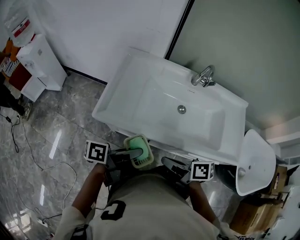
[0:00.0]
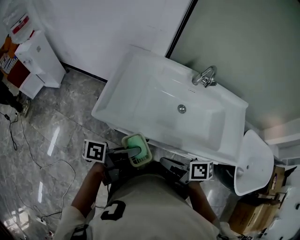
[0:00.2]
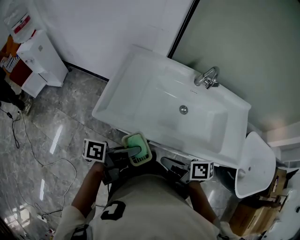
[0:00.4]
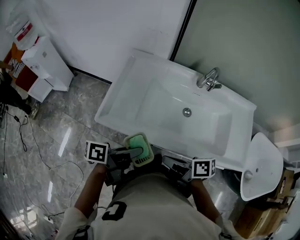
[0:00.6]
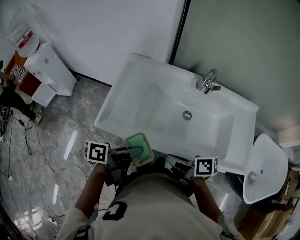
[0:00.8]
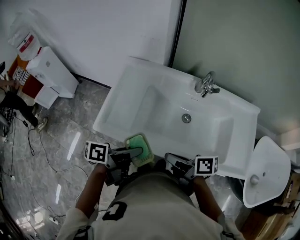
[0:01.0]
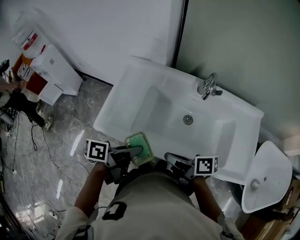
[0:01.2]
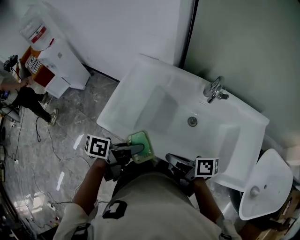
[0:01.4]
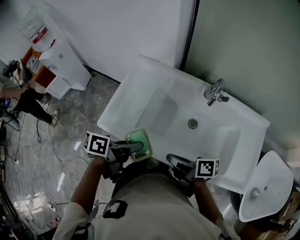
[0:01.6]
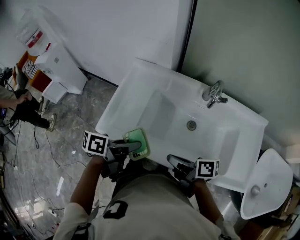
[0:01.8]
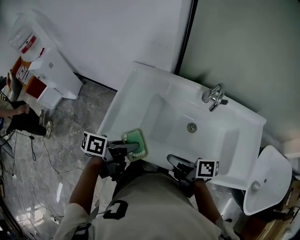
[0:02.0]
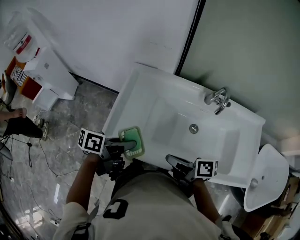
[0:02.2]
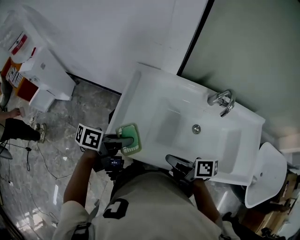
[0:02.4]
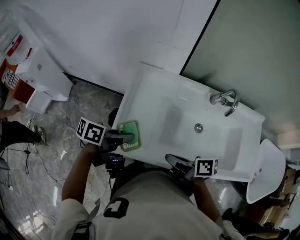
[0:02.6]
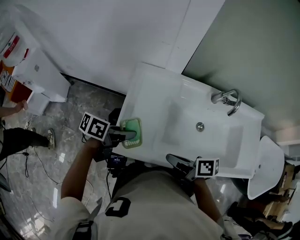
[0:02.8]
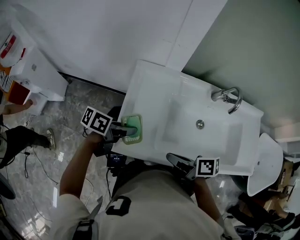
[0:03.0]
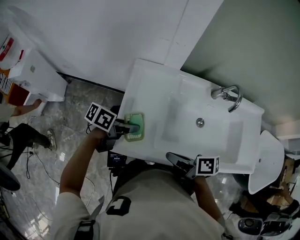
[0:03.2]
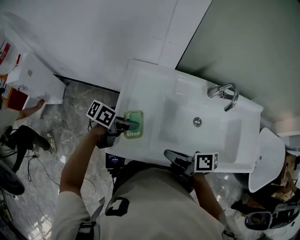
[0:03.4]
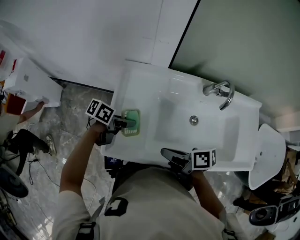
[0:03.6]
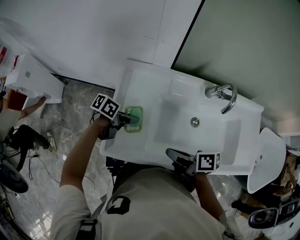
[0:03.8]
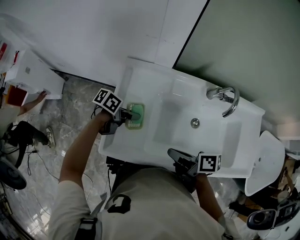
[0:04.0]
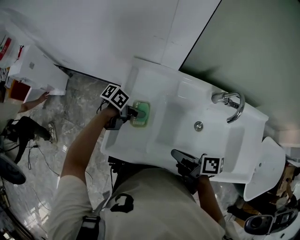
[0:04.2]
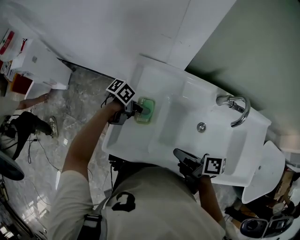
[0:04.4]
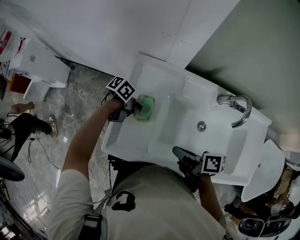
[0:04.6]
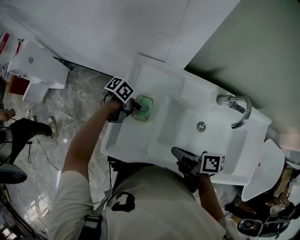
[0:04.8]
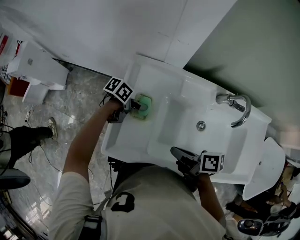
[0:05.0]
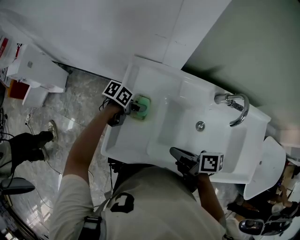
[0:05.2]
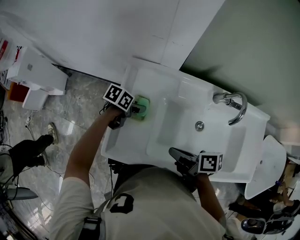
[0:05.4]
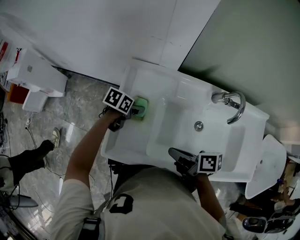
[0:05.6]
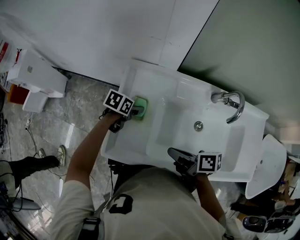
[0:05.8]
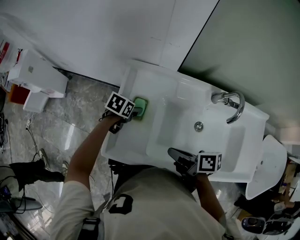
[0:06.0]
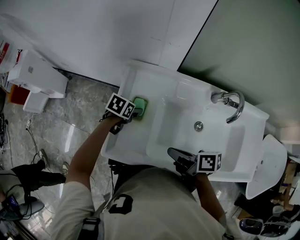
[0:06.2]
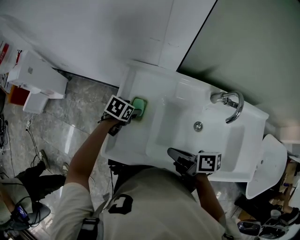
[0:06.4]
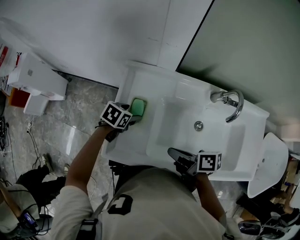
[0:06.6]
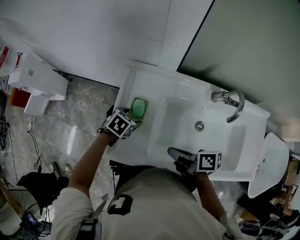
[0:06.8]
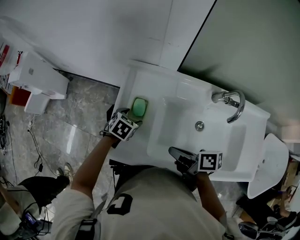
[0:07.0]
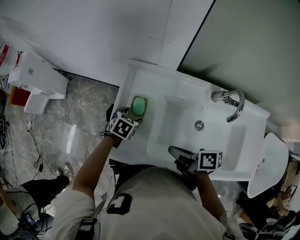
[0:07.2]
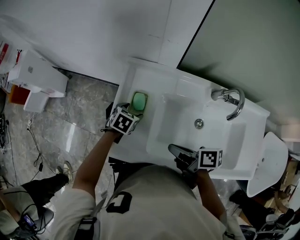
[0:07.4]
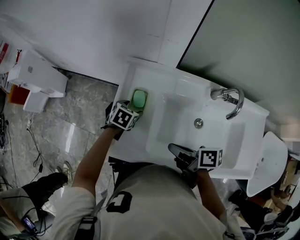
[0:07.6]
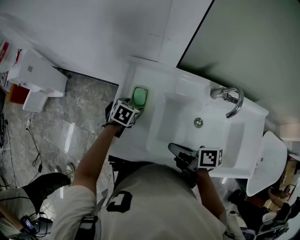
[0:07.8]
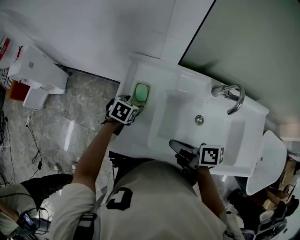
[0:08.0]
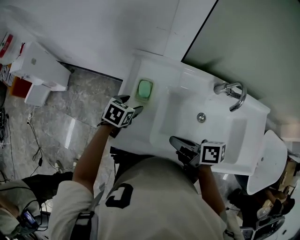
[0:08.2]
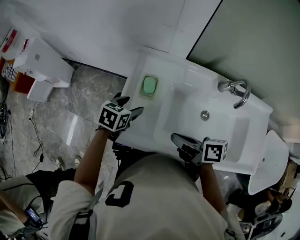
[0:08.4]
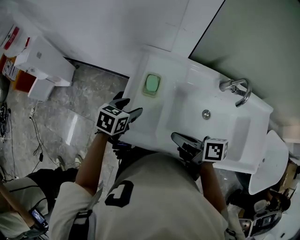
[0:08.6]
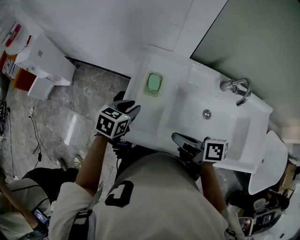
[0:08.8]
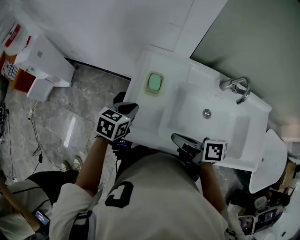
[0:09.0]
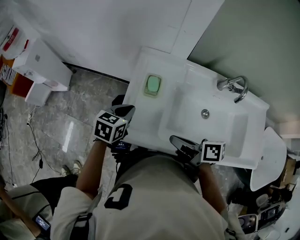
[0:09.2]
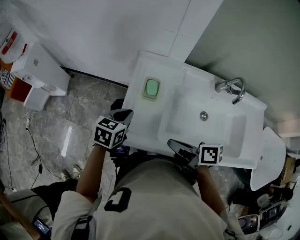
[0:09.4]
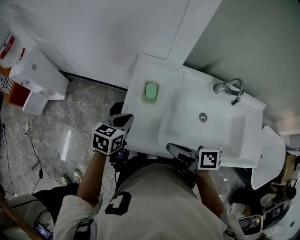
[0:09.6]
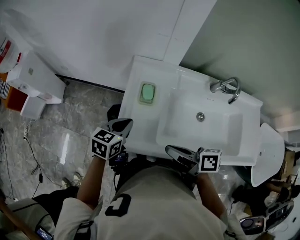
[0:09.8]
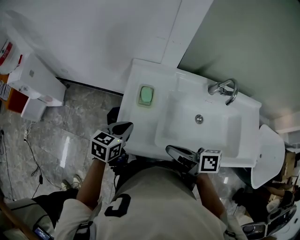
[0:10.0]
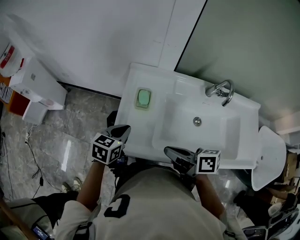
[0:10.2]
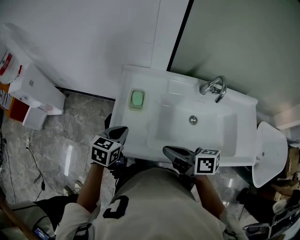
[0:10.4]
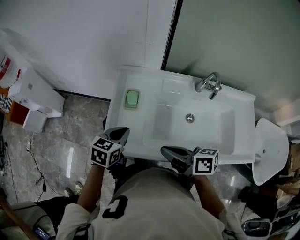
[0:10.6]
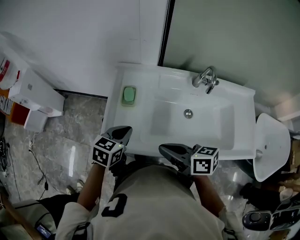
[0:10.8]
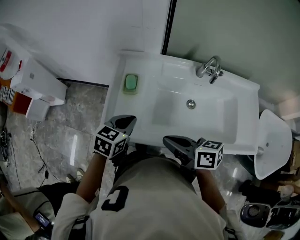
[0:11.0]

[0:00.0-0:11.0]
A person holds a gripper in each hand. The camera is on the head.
0:00.0 to 0:01.6: The left gripper ends up approximately 10 cm from where it was.
0:01.6 to 0:03.2: The left gripper changes place by roughly 25 cm, and swivels some 30 degrees.
0:03.2 to 0:04.8: The left gripper moves approximately 15 cm.
0:04.8 to 0:06.2: The left gripper changes its angle by some 40 degrees, and opens up.
0:07.8 to 0:09.4: The left gripper changes place by some 20 cm, and closes its fingers.
0:09.4 to 0:11.0: The left gripper changes place by roughly 15 cm.

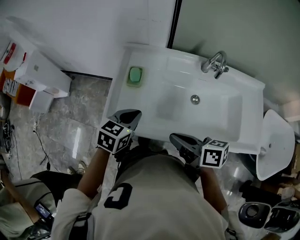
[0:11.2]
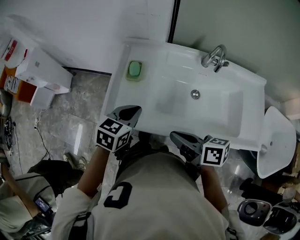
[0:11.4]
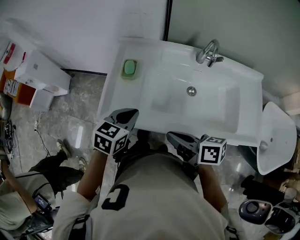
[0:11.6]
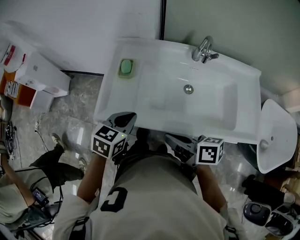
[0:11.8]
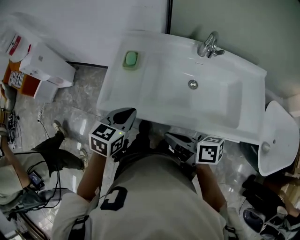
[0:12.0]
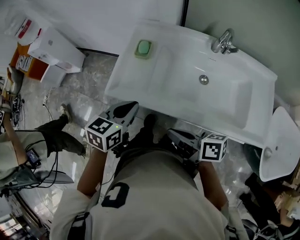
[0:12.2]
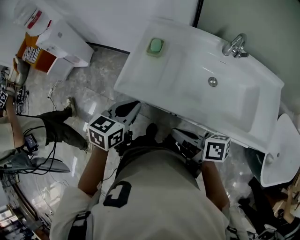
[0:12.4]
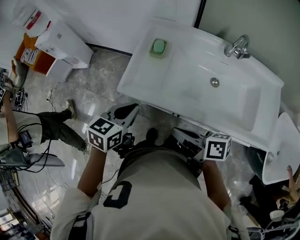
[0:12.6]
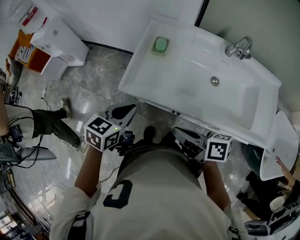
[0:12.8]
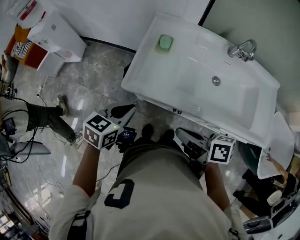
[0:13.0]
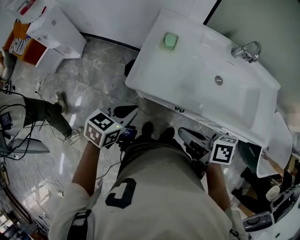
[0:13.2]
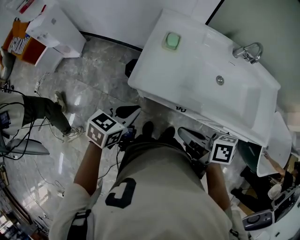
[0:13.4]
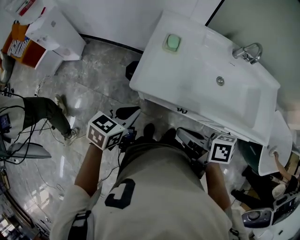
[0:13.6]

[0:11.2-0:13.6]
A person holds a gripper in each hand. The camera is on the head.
0:11.2 to 0:12.4: The left gripper shifts by some 15 cm.
0:12.4 to 0:13.6: The left gripper ends up approximately 10 cm from where it was.

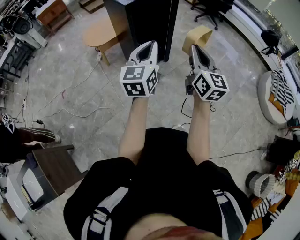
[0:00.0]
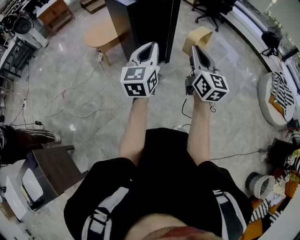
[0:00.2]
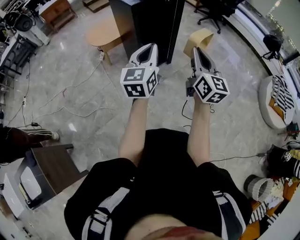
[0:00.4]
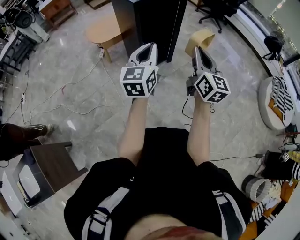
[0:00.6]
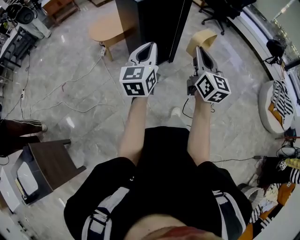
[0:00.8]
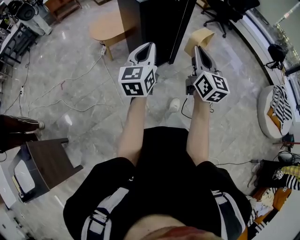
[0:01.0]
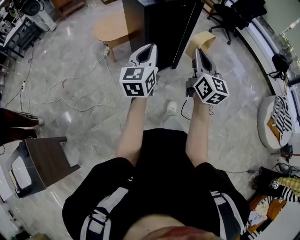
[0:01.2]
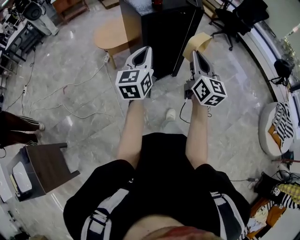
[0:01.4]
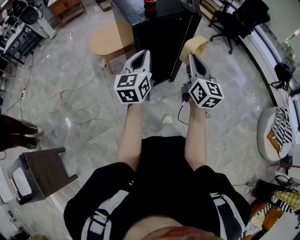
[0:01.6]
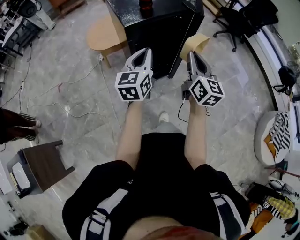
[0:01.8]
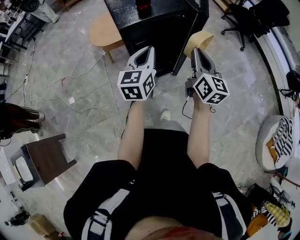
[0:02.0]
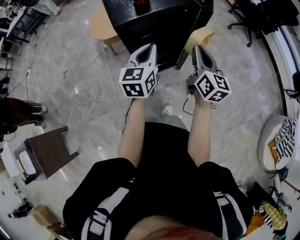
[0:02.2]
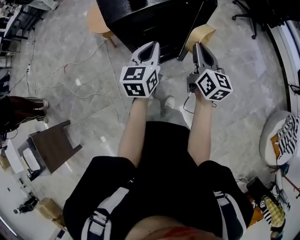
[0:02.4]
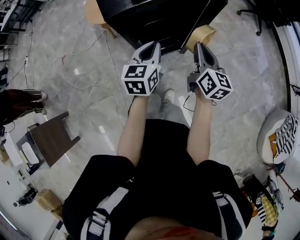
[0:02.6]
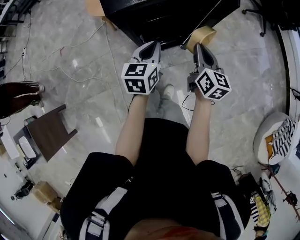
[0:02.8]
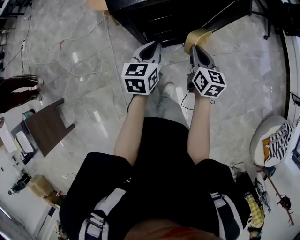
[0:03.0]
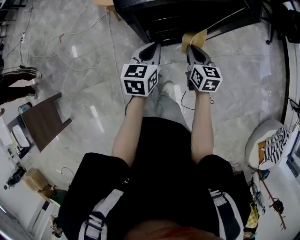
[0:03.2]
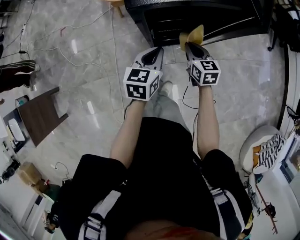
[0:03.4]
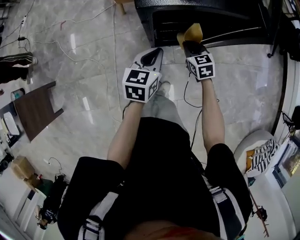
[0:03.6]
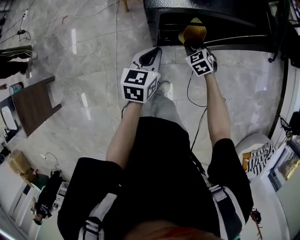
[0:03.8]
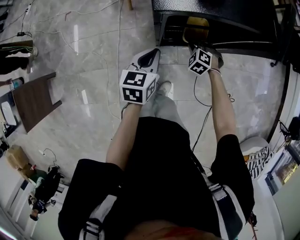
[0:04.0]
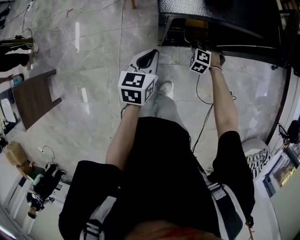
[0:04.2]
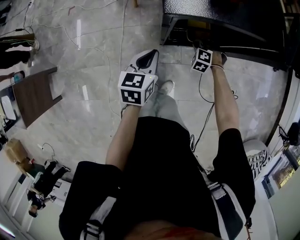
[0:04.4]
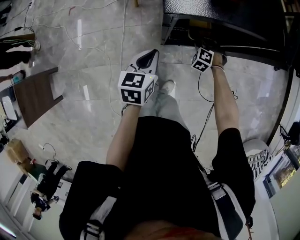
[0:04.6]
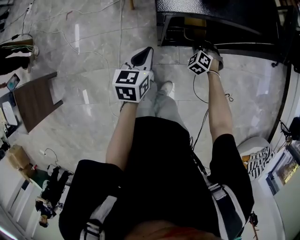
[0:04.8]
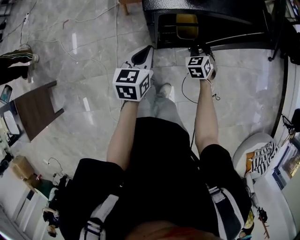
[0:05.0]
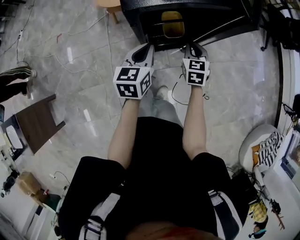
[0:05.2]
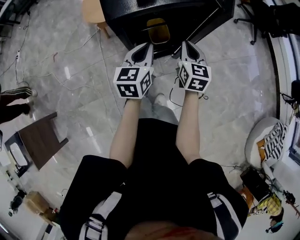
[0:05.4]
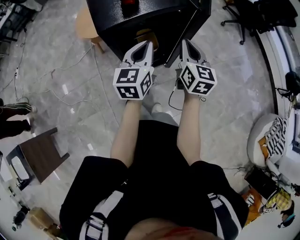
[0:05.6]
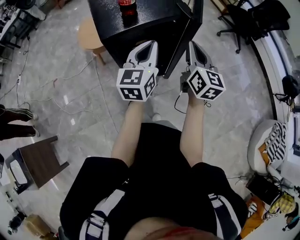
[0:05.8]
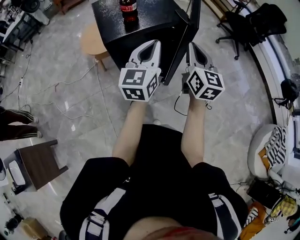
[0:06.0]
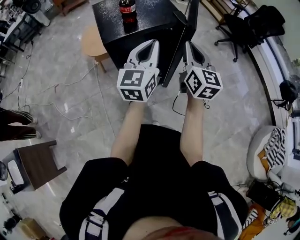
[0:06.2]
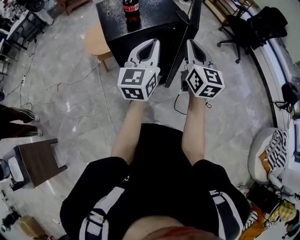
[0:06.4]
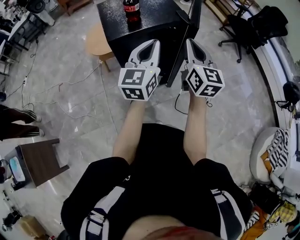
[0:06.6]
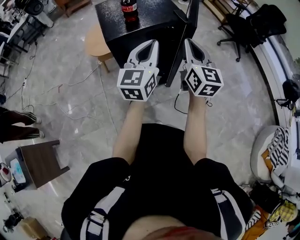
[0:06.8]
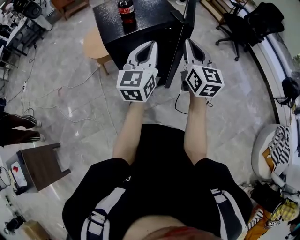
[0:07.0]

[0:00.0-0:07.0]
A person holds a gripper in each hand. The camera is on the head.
0:00.0 to 0:01.4: The right gripper heads forward, covering some 15 cm. The left gripper goes about 15 cm forward and to the left.
0:01.4 to 0:02.8: The left gripper is displaced forward, downward and to the right by about 30 cm, and changes its angle by roughly 30 degrees, while the right gripper travels forward and downward by approximately 35 cm, and swivels approximately 30 degrees.
0:02.8 to 0:04.2: The left gripper shifts about 15 cm to the left and downward. The right gripper is displaced downward and to the left by approximately 30 cm, and rotates around the line of its fingers by about 100 degrees, counterclockwise from behind.
0:04.2 to 0:05.6: The right gripper heads upward and to the right, covering about 35 cm, and rolls clockwise, seen from behind, by approximately 90 degrees; the left gripper moves upward and to the right, some 20 cm, and changes its angle by roughly 30 degrees.
0:05.6 to 0:07.0: Both grippers move upward, roughly 10 cm.

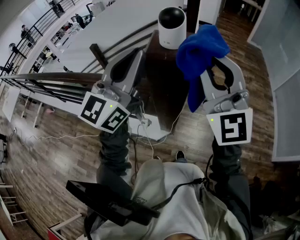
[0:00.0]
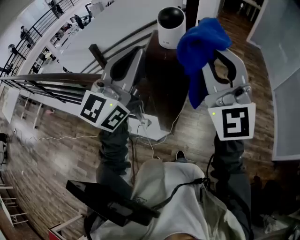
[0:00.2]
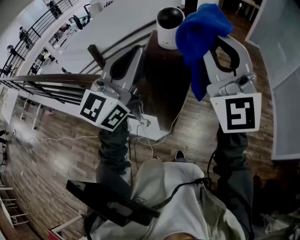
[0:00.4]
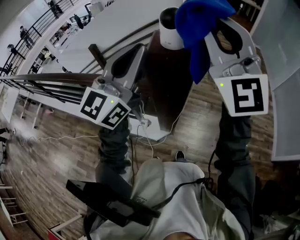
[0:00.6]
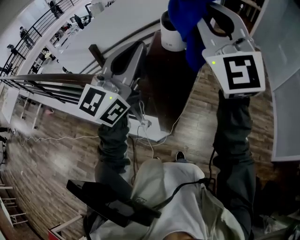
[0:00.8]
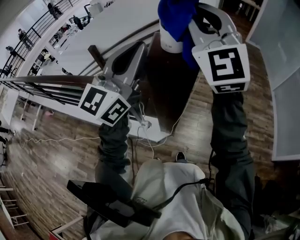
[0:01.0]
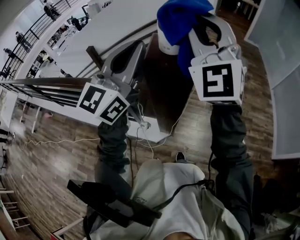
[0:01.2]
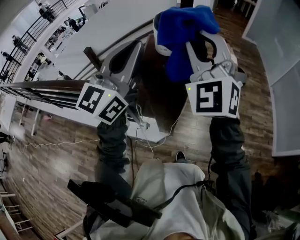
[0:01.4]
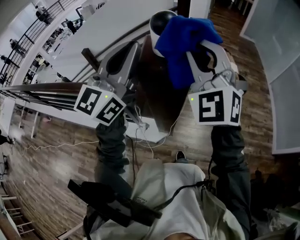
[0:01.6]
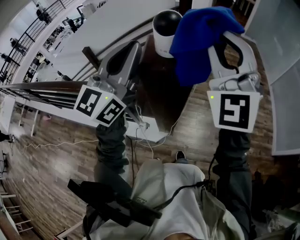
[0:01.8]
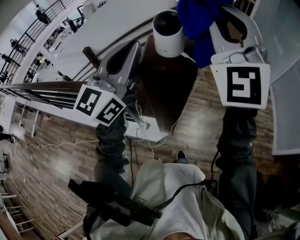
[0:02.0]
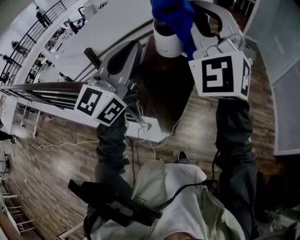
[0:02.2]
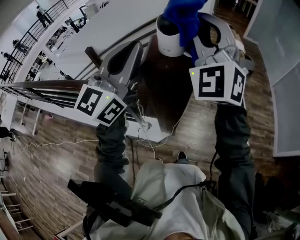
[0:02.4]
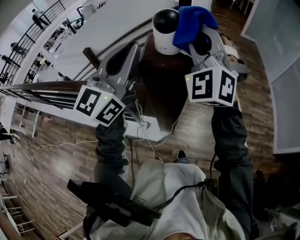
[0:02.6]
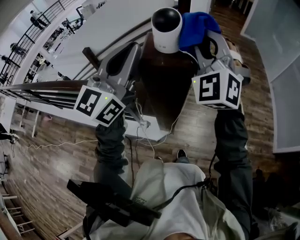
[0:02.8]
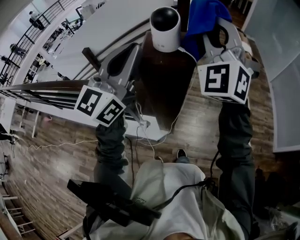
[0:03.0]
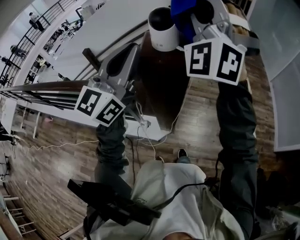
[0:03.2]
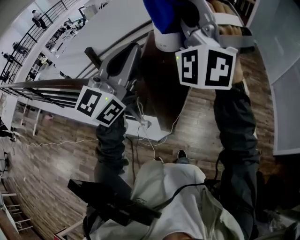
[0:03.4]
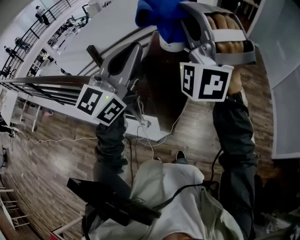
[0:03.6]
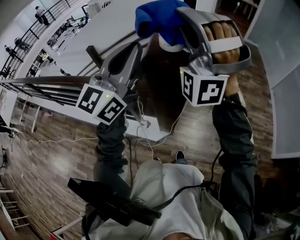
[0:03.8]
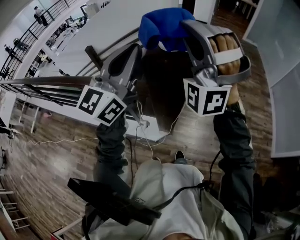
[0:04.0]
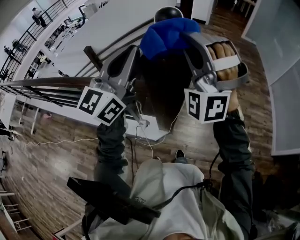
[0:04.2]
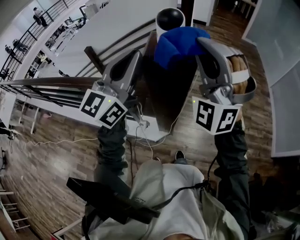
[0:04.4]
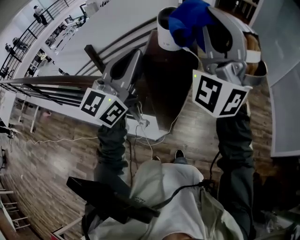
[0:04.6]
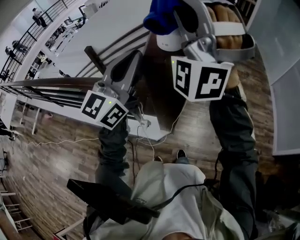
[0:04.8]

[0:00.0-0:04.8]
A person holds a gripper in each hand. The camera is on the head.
0:00.0 to 0:01.6: Both grippers travel together forward, about 5 cm. The right gripper travels upward and back again, about 10 cm each way, and swivels some 30 degrees.
0:01.6 to 0:03.2: The right gripper moves up and down over some 10 cm, changing direction 2 times, and swivels about 30 degrees.
0:03.2 to 0:04.8: The right gripper is displaced backward by some 5 cm, and goes downward and returns, some 10 cm each way.
